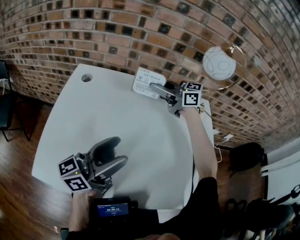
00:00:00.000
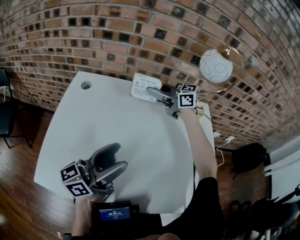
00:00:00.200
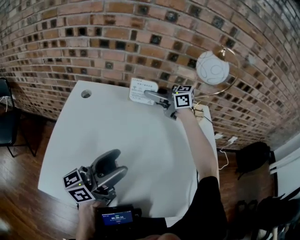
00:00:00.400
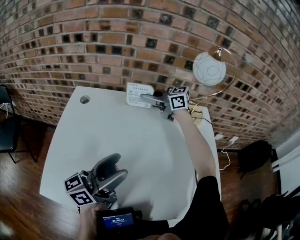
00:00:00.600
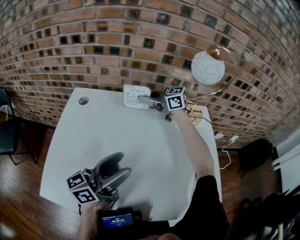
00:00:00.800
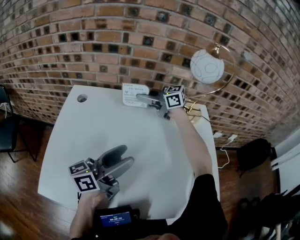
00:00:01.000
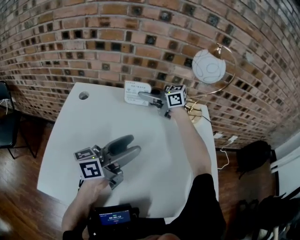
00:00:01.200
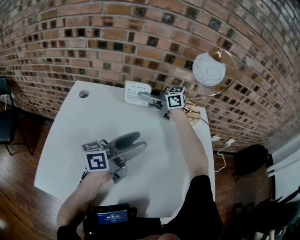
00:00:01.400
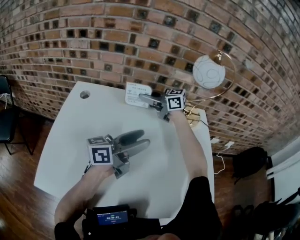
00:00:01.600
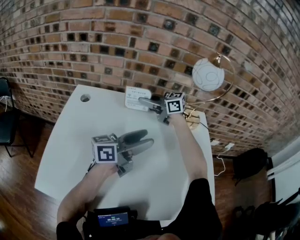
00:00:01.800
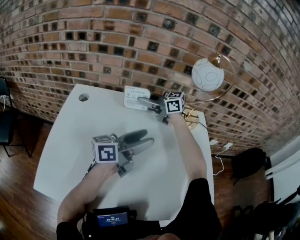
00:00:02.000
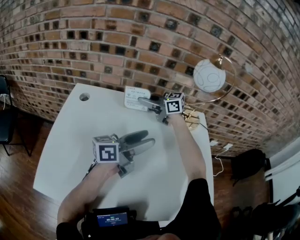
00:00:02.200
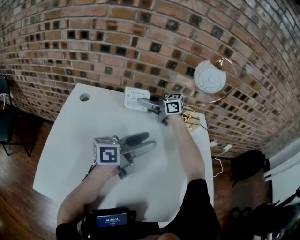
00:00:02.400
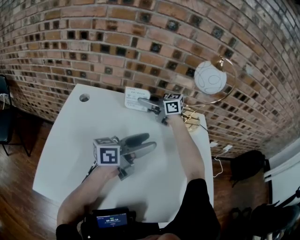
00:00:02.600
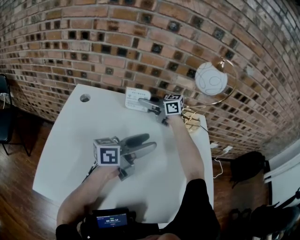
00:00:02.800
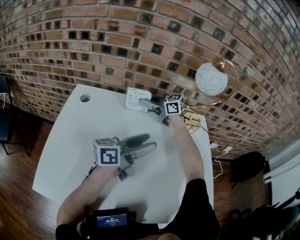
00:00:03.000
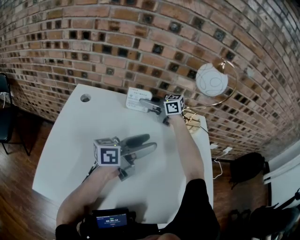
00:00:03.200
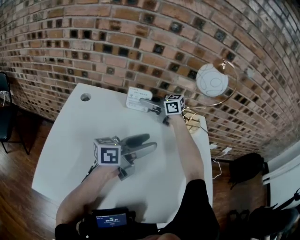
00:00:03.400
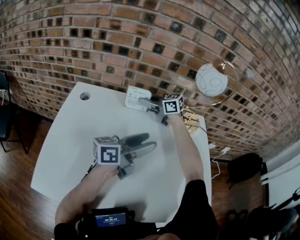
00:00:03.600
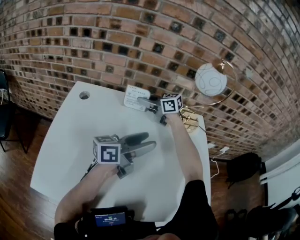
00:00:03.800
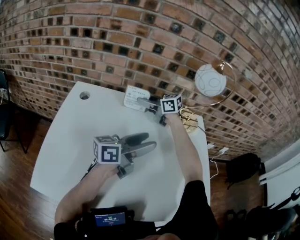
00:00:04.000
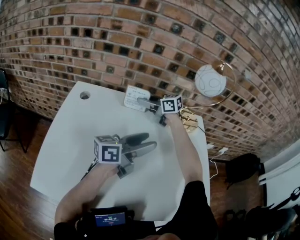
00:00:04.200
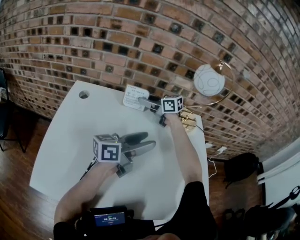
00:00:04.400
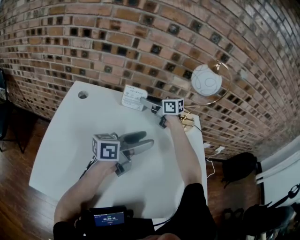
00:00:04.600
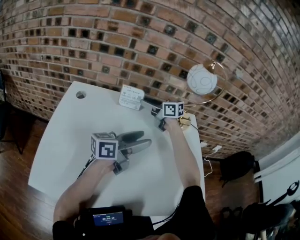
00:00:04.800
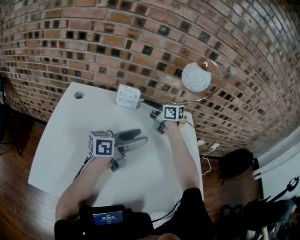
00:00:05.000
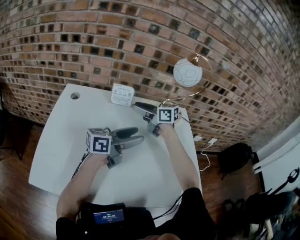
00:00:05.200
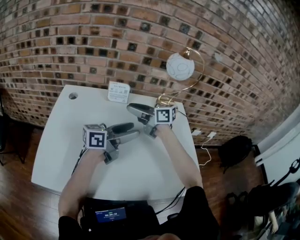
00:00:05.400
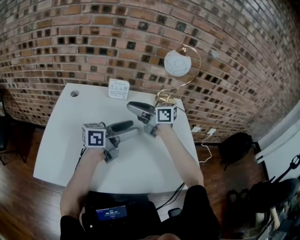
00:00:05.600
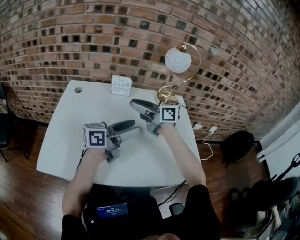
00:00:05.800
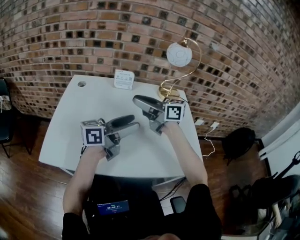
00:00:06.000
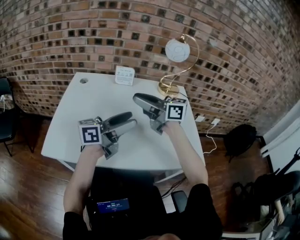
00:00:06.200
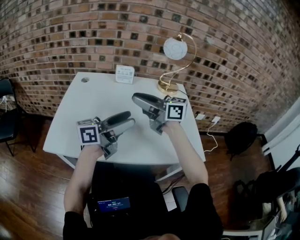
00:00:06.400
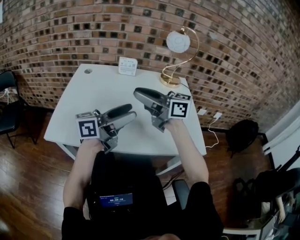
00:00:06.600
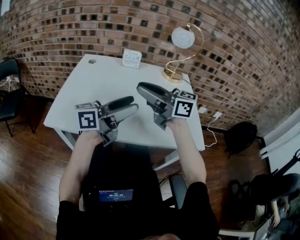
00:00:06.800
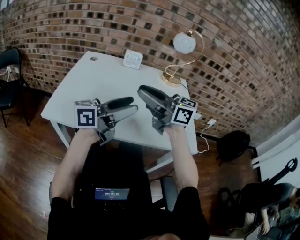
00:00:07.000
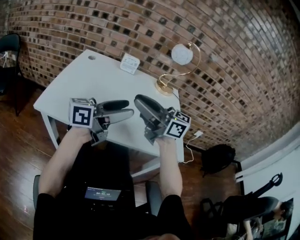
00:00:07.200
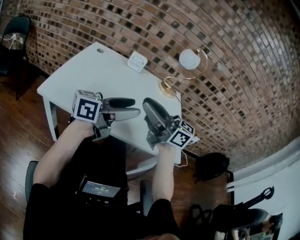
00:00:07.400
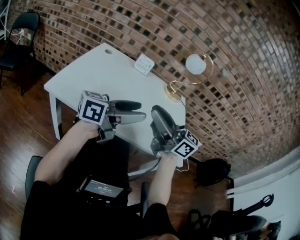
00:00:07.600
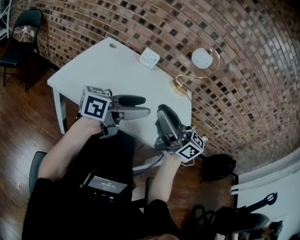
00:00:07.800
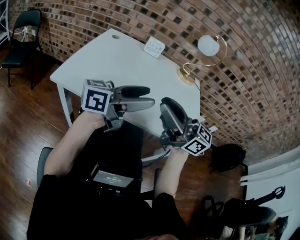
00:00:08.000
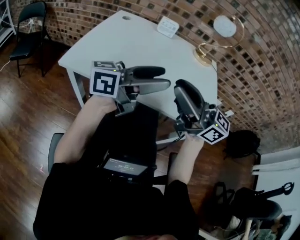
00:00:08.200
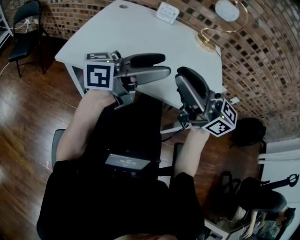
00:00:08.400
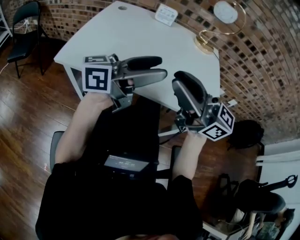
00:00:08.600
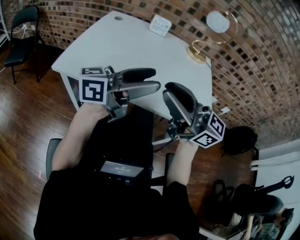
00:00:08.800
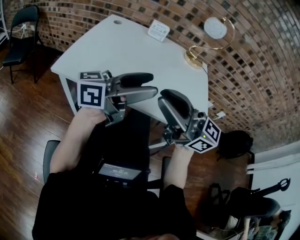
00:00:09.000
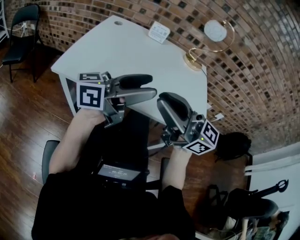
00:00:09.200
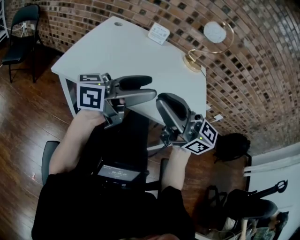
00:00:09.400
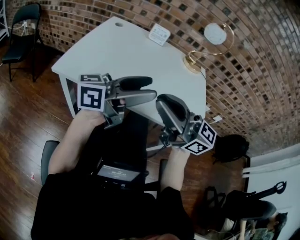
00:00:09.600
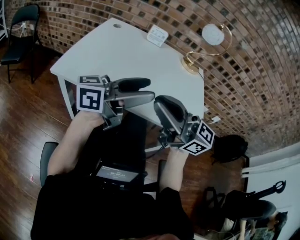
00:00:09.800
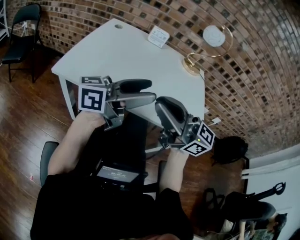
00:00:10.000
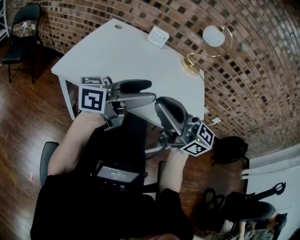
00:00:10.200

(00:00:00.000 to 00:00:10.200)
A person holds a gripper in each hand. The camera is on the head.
00:00:00.000 - 00:00:01.400: The left gripper ends up roughly 10 cm from where it was, while the right gripper changes place by about 5 cm.
00:00:01.400 - 00:00:03.000: The grippers move only a little.
00:00:03.000 - 00:00:04.400: The right gripper opens up.
00:00:04.400 - 00:00:05.800: The left gripper ends up approximately 10 cm from where it was. The right gripper moves some 25 cm, and closes up.
00:00:05.800 - 00:00:07.200: The right gripper changes place by approximately 25 cm. Meanwhile the left gripper changes place by about 20 cm.
00:00:07.200 - 00:00:08.800: The right gripper changes place by some 10 cm.
00:00:08.800 - 00:00:10.200: The grippers make only small movements.

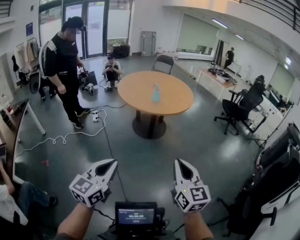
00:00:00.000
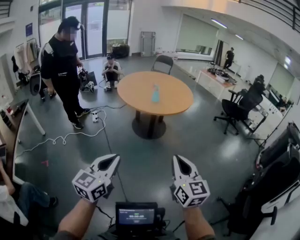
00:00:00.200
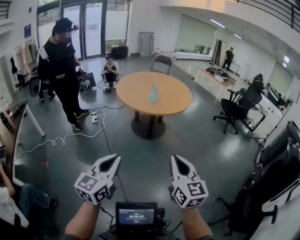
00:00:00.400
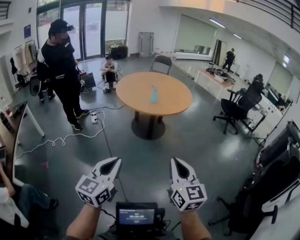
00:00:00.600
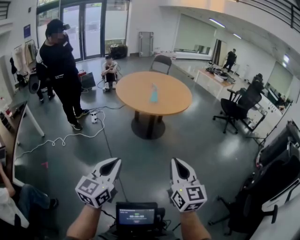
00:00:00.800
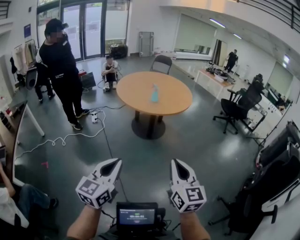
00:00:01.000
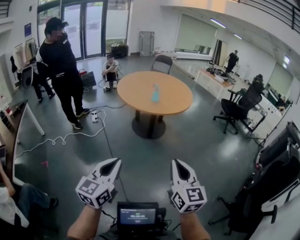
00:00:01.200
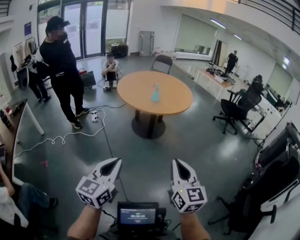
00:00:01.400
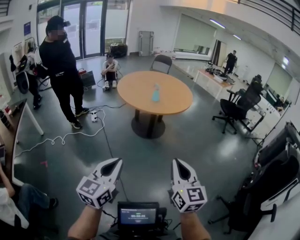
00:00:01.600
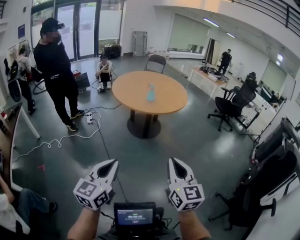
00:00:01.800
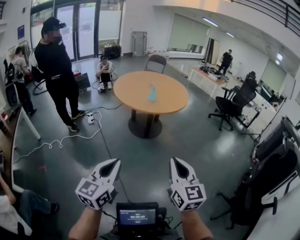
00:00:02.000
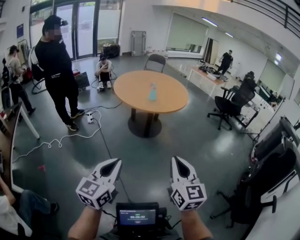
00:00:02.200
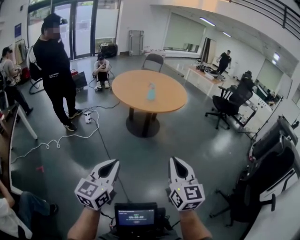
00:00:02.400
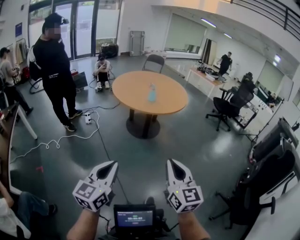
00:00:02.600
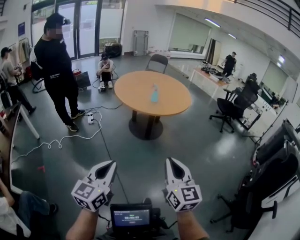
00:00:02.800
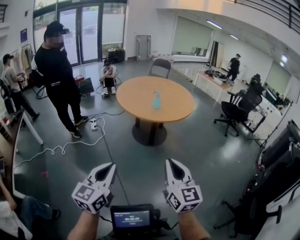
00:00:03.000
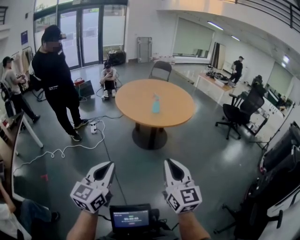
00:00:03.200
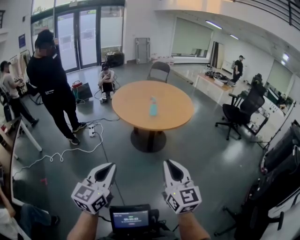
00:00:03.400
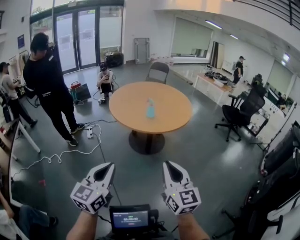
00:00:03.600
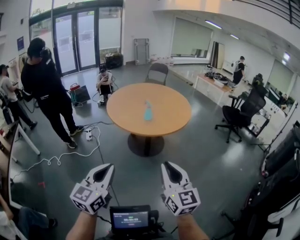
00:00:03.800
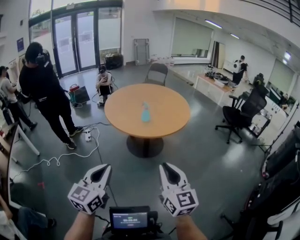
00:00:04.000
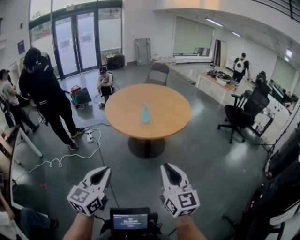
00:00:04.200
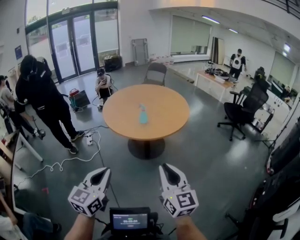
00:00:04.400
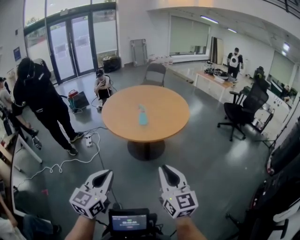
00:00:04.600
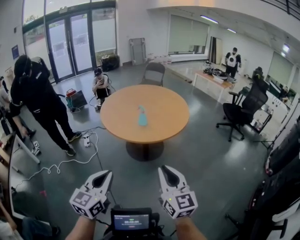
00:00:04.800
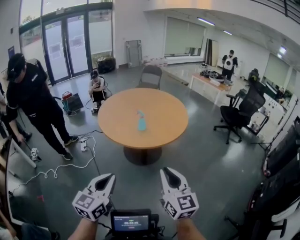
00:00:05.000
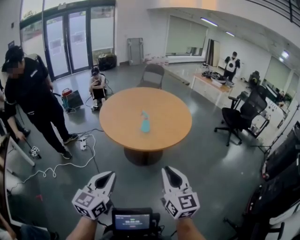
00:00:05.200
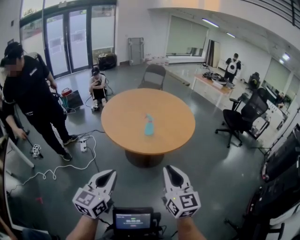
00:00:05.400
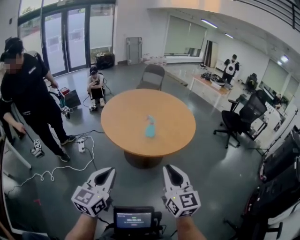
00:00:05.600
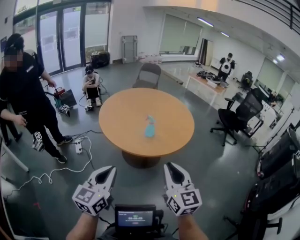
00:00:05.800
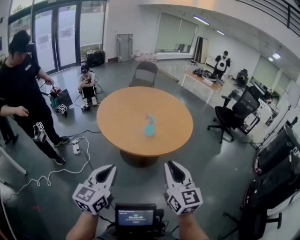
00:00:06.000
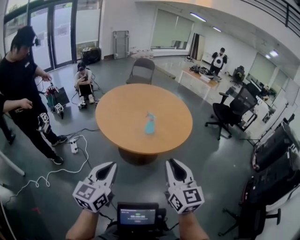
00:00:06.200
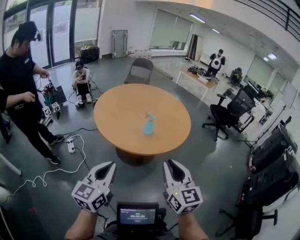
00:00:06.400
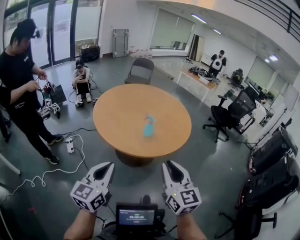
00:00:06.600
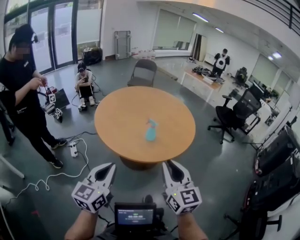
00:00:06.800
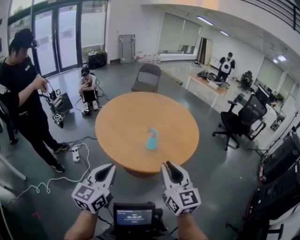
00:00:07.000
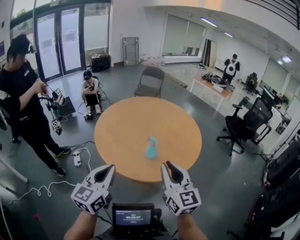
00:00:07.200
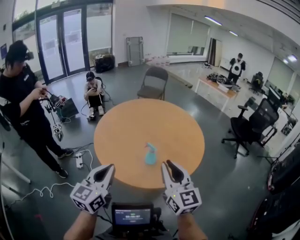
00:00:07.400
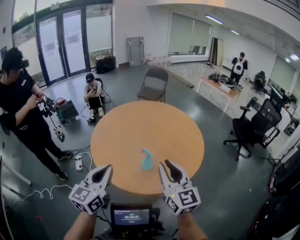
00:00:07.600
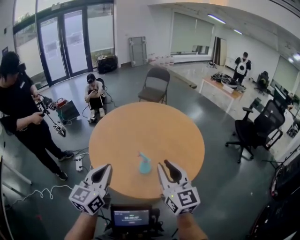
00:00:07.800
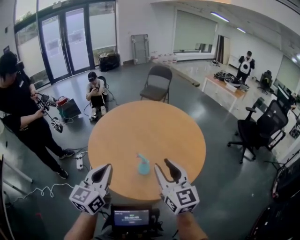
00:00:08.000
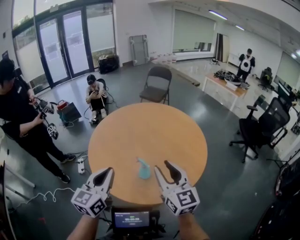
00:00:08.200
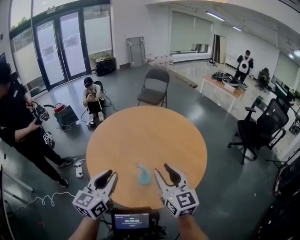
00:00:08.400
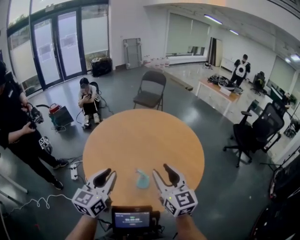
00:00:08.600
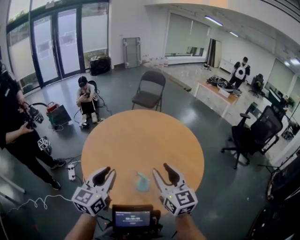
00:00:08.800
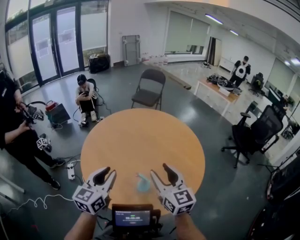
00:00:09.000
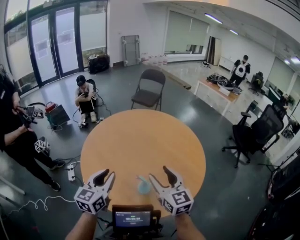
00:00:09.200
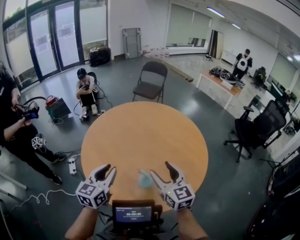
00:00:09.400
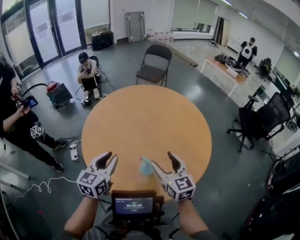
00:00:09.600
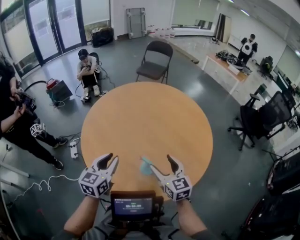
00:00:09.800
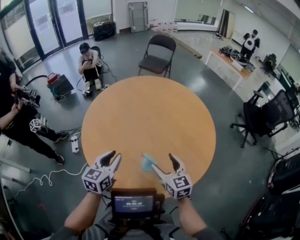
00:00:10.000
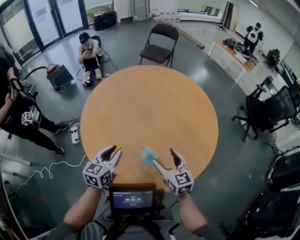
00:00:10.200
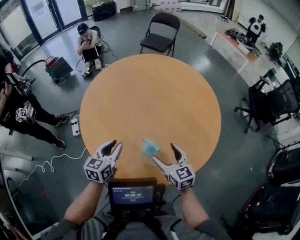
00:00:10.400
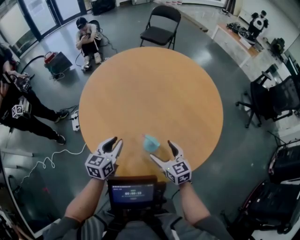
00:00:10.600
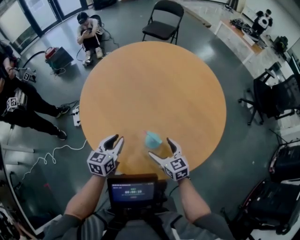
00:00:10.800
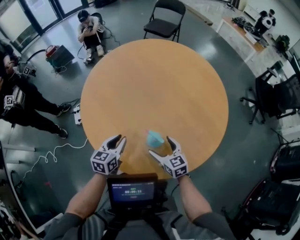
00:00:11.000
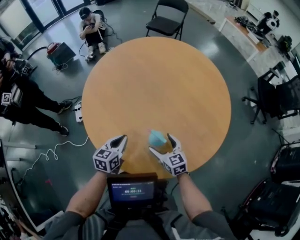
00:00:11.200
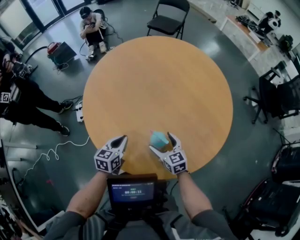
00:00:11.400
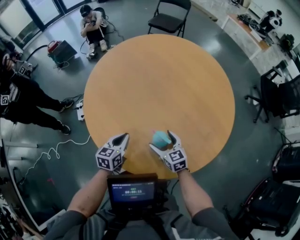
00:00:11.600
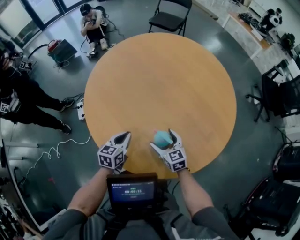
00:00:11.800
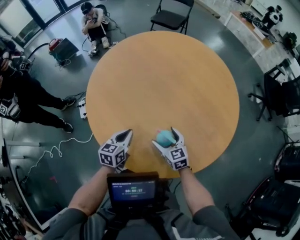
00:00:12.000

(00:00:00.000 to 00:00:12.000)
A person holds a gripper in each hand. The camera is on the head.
00:00:00.000 - 00:00:01.600: The grippers make only small movements.
00:00:01.600 - 00:00:03.000: The left gripper ends up roughly 5 cm from where it was; the right gripper shifts about 10 cm forward and to the left.
00:00:03.000 - 00:00:04.400: The two grippers go about 20 cm forward and to the right.
00:00:04.400 - 00:00:06.000: Both grippers travel together forward and to the left, some 25 cm.
00:00:06.000 - 00:00:07.600: Both grippers move forward, roughly 25 cm.
00:00:07.600 - 00:00:09.000: Both grippers travel together forward, some 15 cm. The left gripper opens up.
00:00:09.000 - 00:00:10.400: The two grippers go about 20 cm downward. The right gripper changes its angle by approximately 20 degrees, and opens its fingers.
00:00:10.400 - 00:00:12.000: The right gripper goes roughly 10 cm downward and to the left, while the left gripper shifts some 10 cm downward, and closes up.

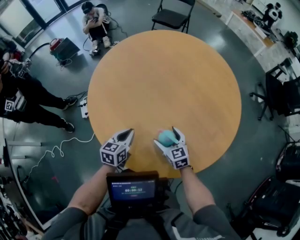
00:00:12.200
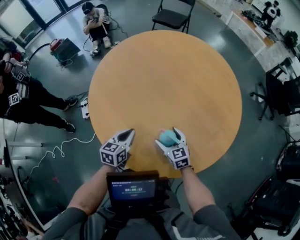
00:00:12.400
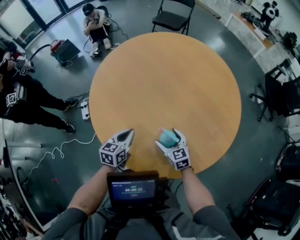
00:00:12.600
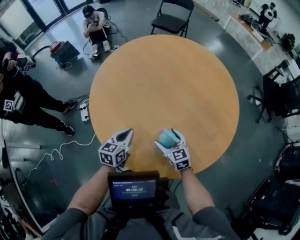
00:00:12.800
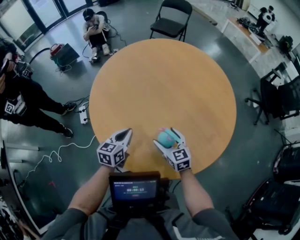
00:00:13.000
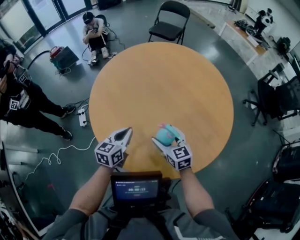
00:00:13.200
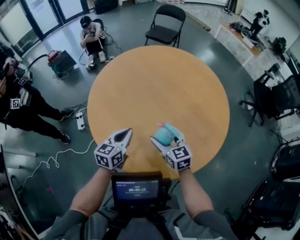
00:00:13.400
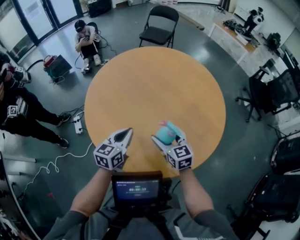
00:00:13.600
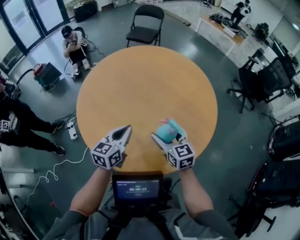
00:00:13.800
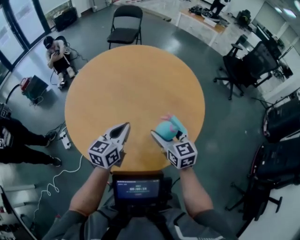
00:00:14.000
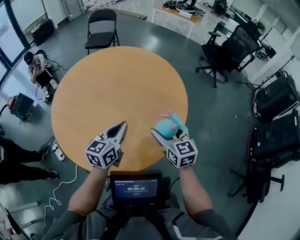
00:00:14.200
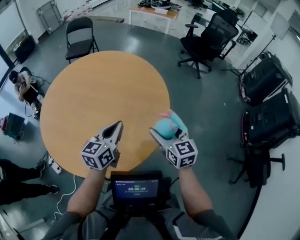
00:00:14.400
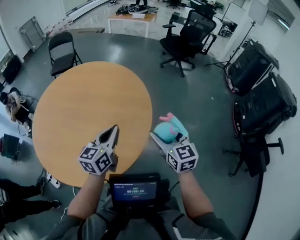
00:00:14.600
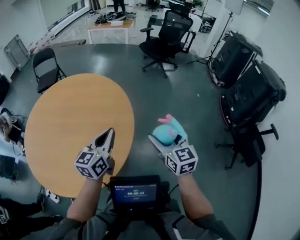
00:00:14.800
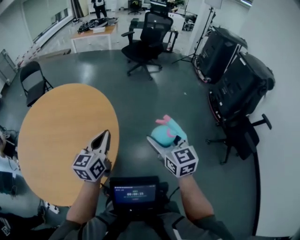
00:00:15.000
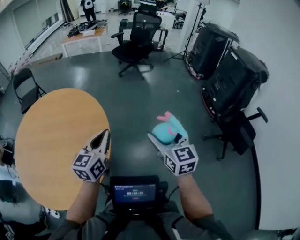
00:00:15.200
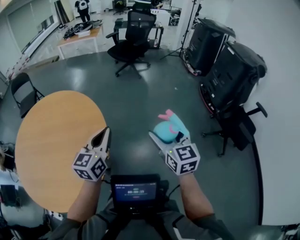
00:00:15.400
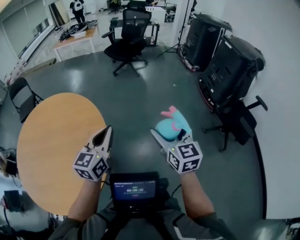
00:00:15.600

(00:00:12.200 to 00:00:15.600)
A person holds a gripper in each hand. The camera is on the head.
00:00:12.200 - 00:00:13.800: The two grippers go approximately 15 cm upward.
00:00:13.800 - 00:00:15.600: The pair of grippers is taken about 50 cm. The right gripper changes its angle by roughly 60 degrees. The left gripper turns by about 50 degrees.
